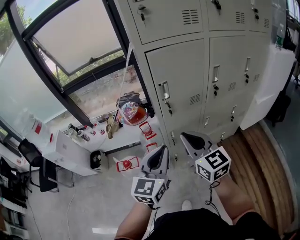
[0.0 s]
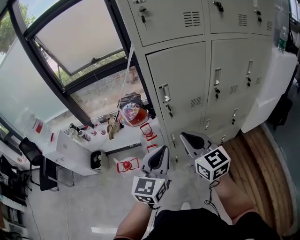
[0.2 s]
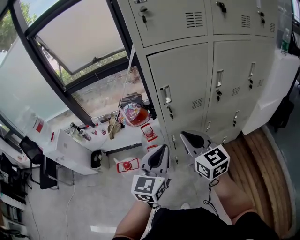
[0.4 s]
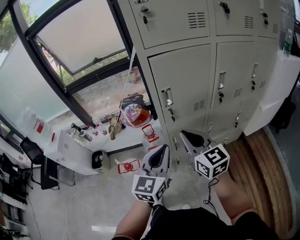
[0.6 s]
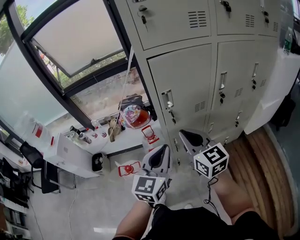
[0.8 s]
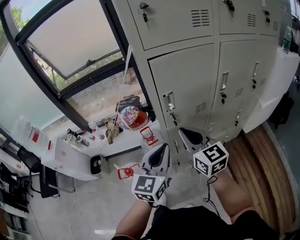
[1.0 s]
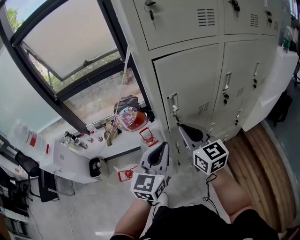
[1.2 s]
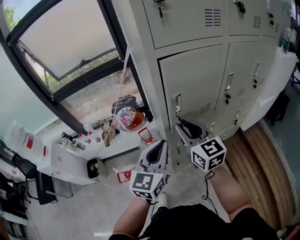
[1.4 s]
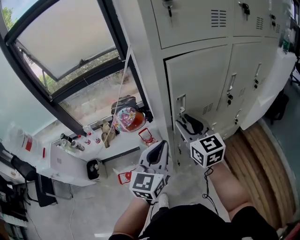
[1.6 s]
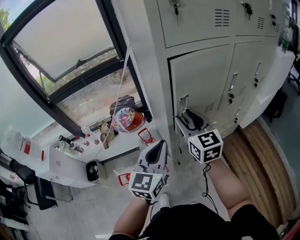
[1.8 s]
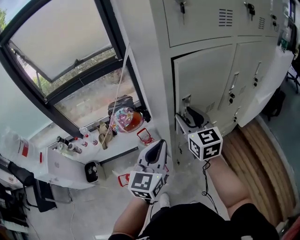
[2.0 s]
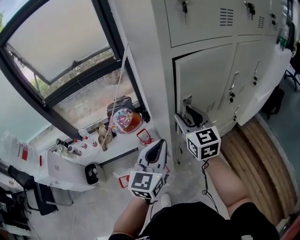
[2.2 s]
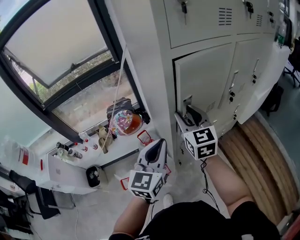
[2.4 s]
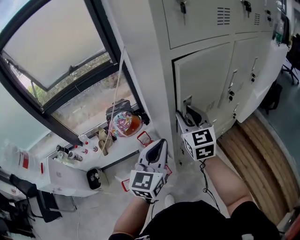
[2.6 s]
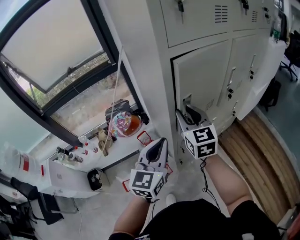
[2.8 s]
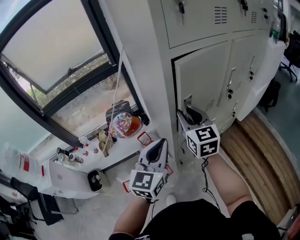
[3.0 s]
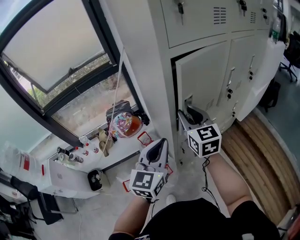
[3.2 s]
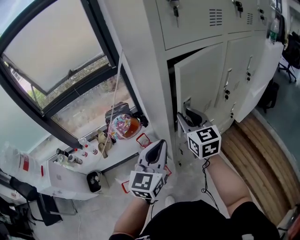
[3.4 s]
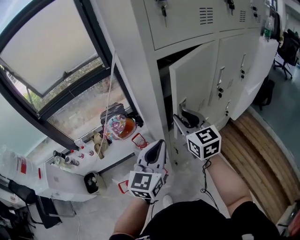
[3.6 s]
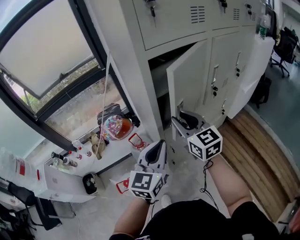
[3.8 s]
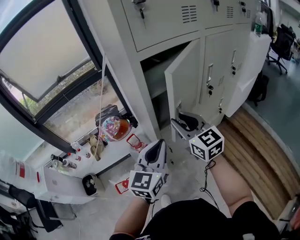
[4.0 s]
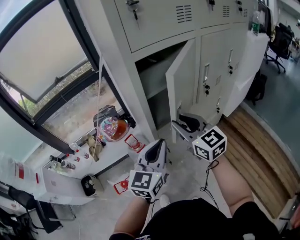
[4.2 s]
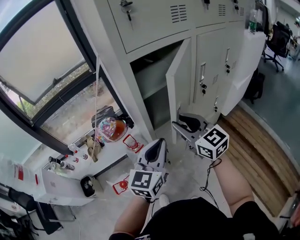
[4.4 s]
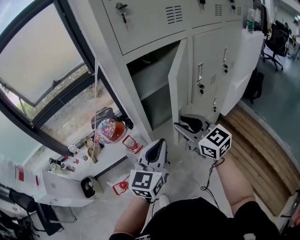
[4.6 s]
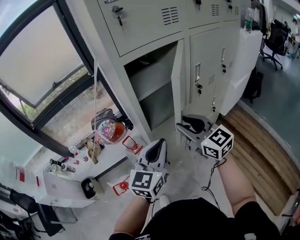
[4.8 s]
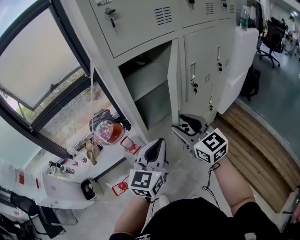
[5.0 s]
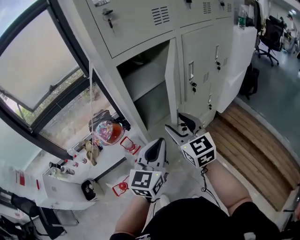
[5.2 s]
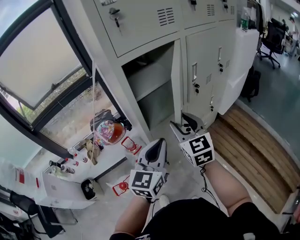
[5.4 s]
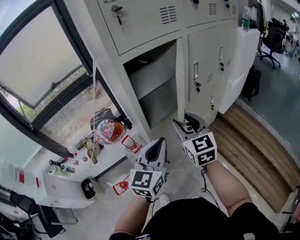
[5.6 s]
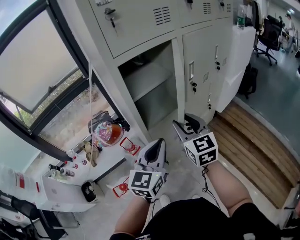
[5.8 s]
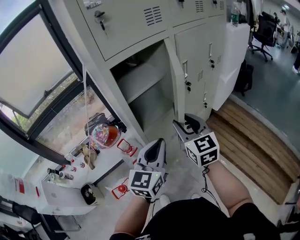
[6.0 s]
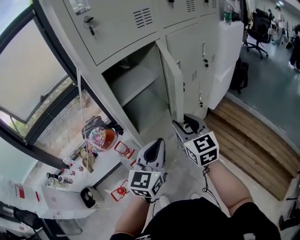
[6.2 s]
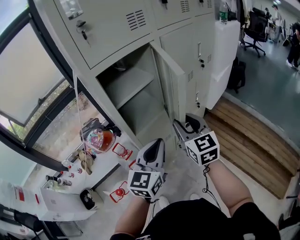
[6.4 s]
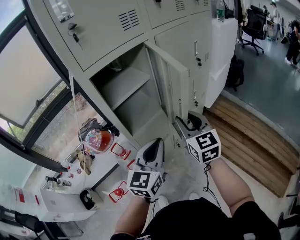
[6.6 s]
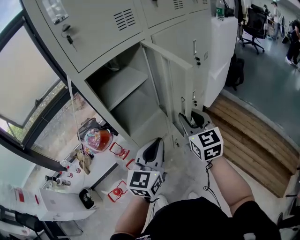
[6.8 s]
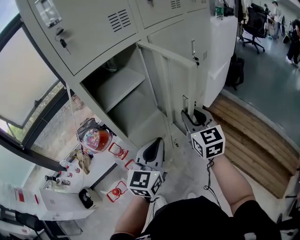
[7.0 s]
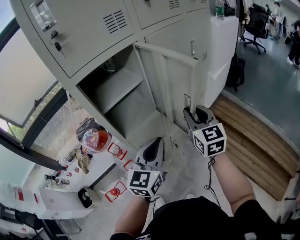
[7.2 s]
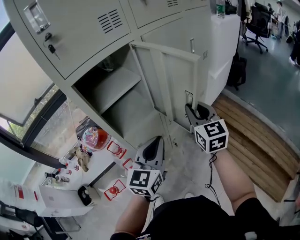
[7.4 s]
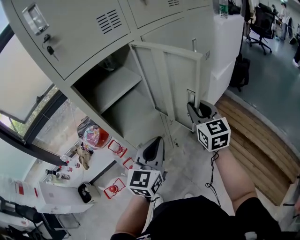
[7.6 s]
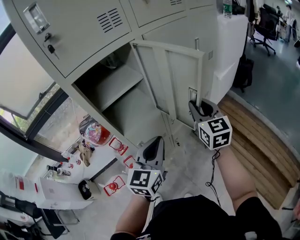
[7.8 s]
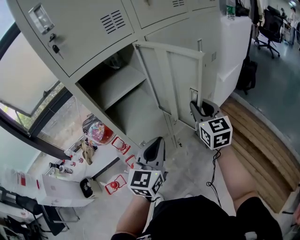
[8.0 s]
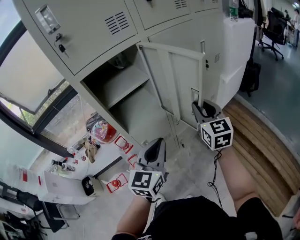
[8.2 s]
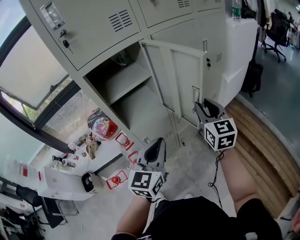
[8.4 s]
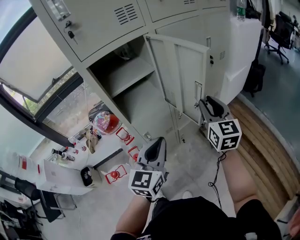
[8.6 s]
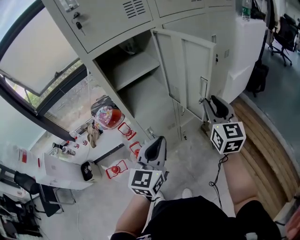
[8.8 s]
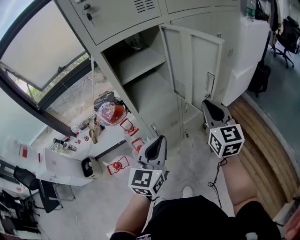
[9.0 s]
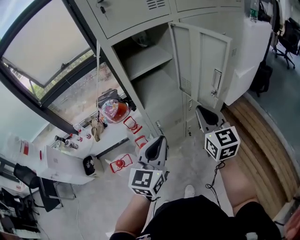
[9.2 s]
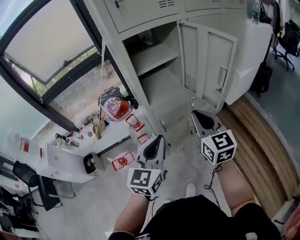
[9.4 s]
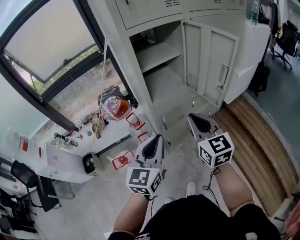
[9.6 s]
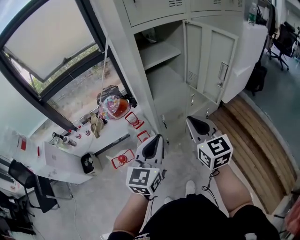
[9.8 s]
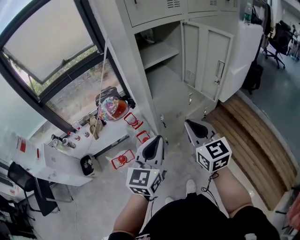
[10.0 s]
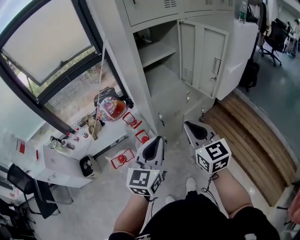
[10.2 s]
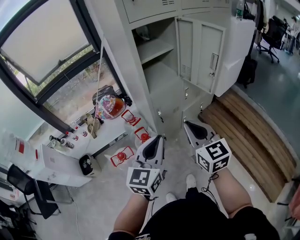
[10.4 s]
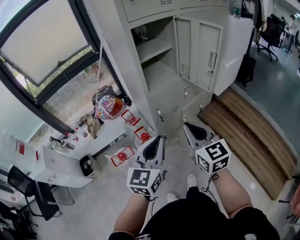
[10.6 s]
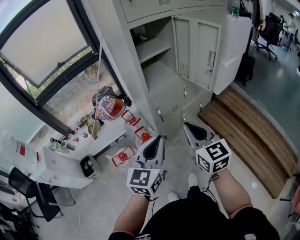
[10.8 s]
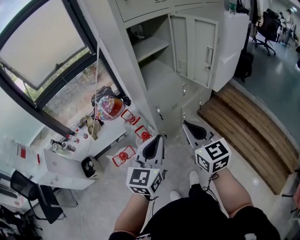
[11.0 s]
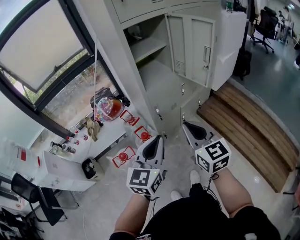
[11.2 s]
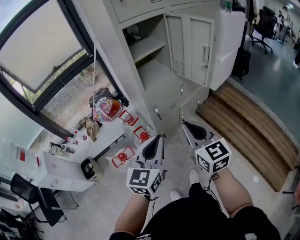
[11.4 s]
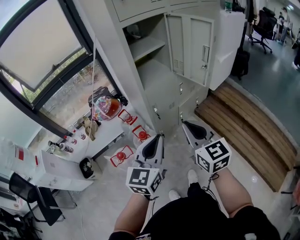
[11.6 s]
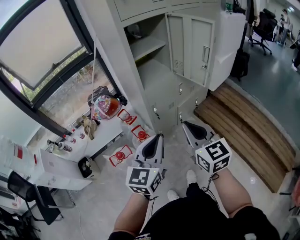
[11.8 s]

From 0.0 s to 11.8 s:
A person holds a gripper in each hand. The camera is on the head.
From 0.0 s to 1.4 s: Both grippers move forward, some 15 cm.
From 1.4 s to 3.0 s: The left gripper goes roughly 5 cm to the left. The right gripper shifts approximately 5 cm forward, and swivels approximately 20 degrees.
From 3.0 s to 4.4 s: The left gripper shifts some 10 cm to the right. Meanwhile the right gripper travels backward and to the right by approximately 10 cm.
From 4.4 s to 6.0 s: The right gripper travels to the right by roughly 5 cm, and rotates roughly 30 degrees.
From 6.0 s to 7.4 s: The left gripper moves to the right, roughly 10 cm. The right gripper travels to the right and forward by some 15 cm.
From 7.4 s to 8.8 s: The left gripper is displaced backward by about 5 cm. The right gripper changes place by about 5 cm.
From 8.8 s to 10.4 s: The left gripper moves backward and to the left, approximately 20 cm. Meanwhile the right gripper shifts approximately 30 cm to the left and backward, and closes its fingers.
From 10.4 s to 11.8 s: The grippers stay close to where they were, moving slightly.

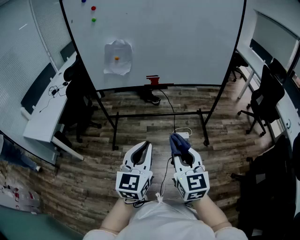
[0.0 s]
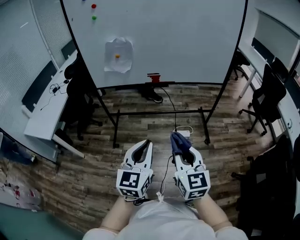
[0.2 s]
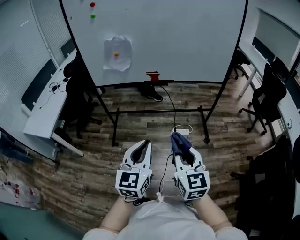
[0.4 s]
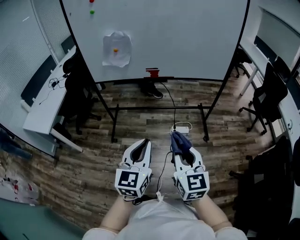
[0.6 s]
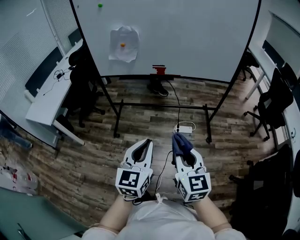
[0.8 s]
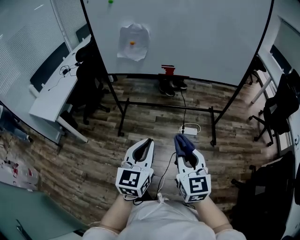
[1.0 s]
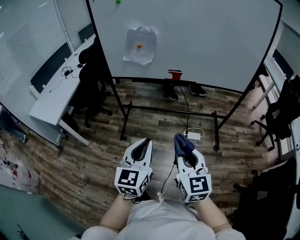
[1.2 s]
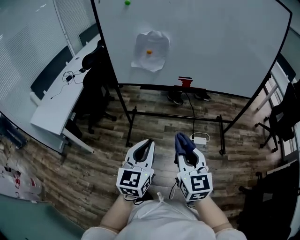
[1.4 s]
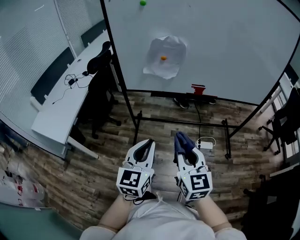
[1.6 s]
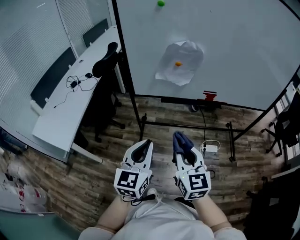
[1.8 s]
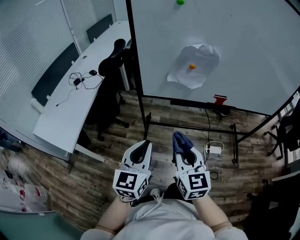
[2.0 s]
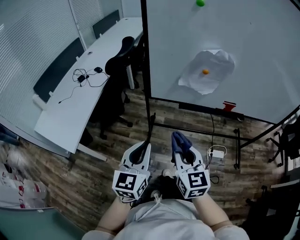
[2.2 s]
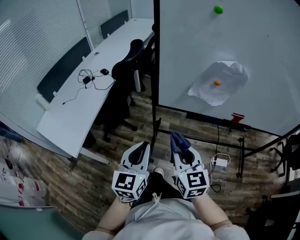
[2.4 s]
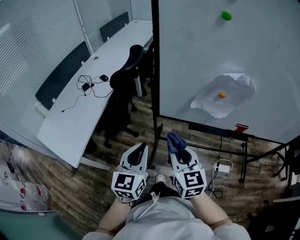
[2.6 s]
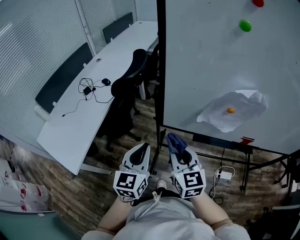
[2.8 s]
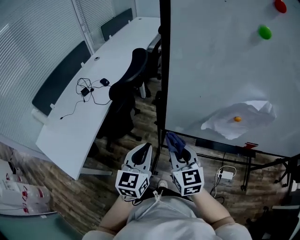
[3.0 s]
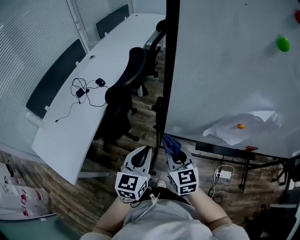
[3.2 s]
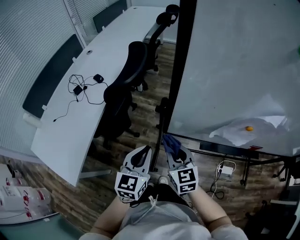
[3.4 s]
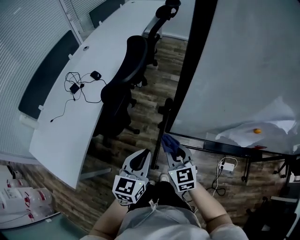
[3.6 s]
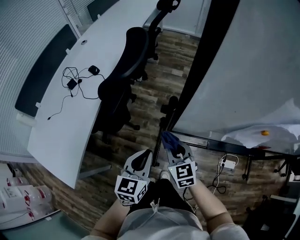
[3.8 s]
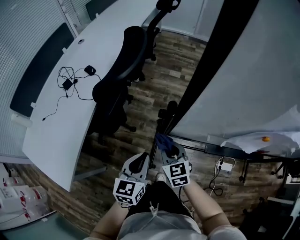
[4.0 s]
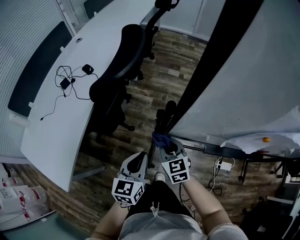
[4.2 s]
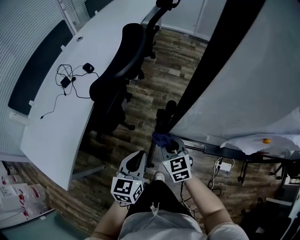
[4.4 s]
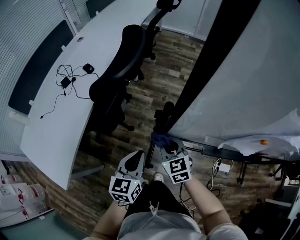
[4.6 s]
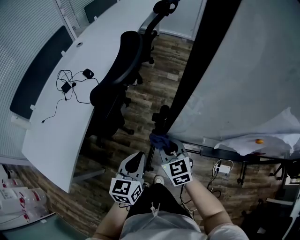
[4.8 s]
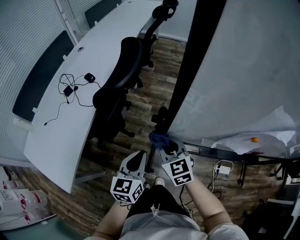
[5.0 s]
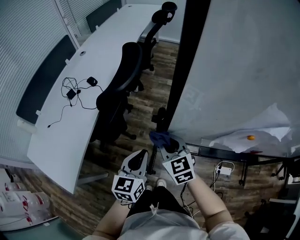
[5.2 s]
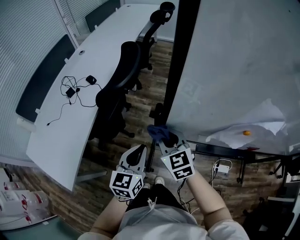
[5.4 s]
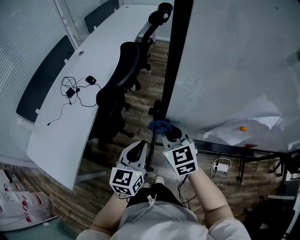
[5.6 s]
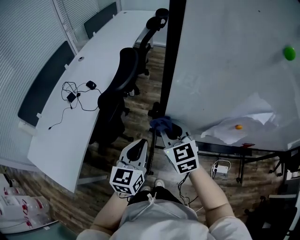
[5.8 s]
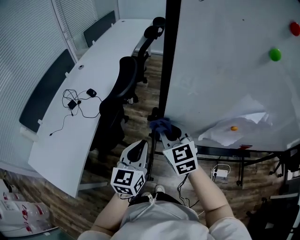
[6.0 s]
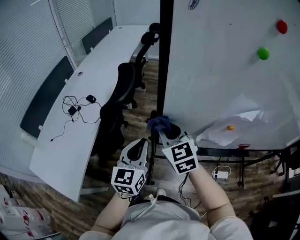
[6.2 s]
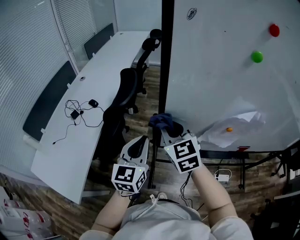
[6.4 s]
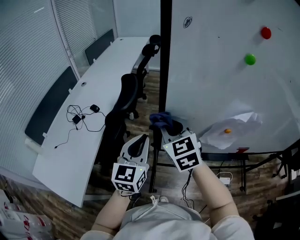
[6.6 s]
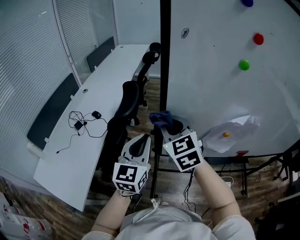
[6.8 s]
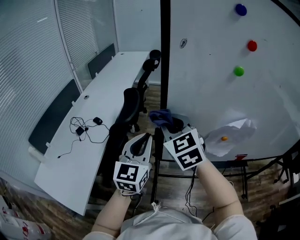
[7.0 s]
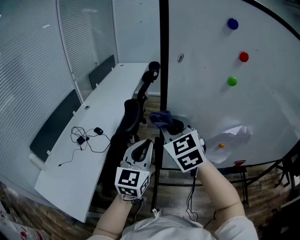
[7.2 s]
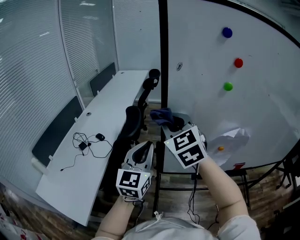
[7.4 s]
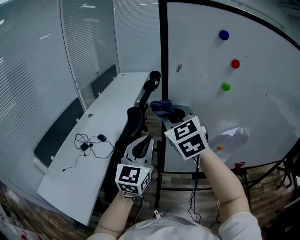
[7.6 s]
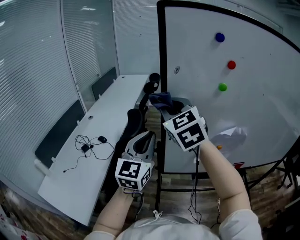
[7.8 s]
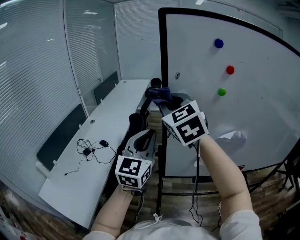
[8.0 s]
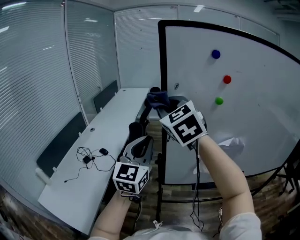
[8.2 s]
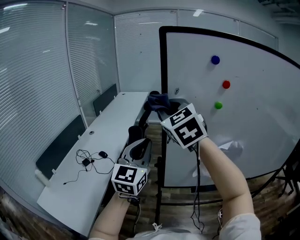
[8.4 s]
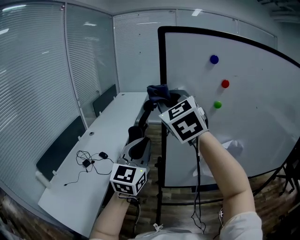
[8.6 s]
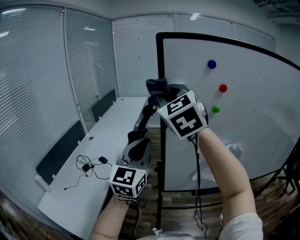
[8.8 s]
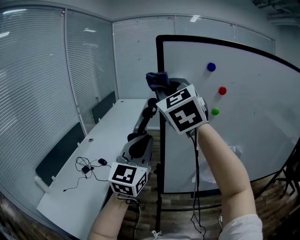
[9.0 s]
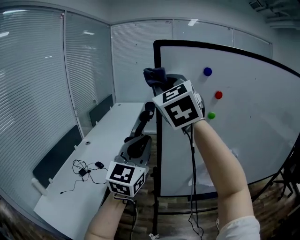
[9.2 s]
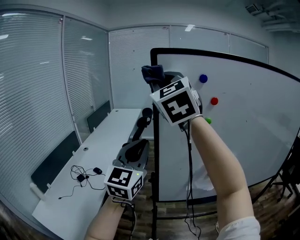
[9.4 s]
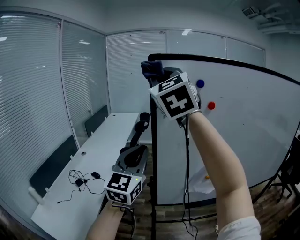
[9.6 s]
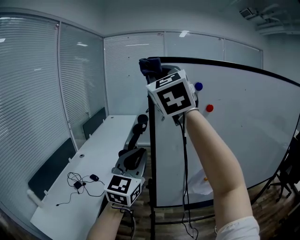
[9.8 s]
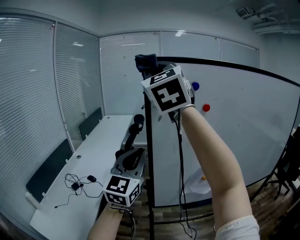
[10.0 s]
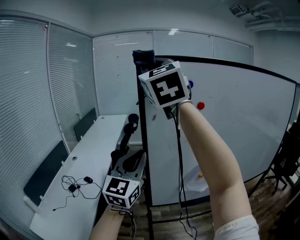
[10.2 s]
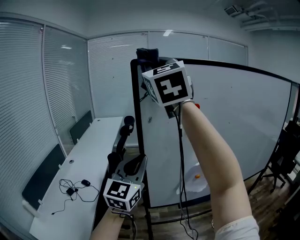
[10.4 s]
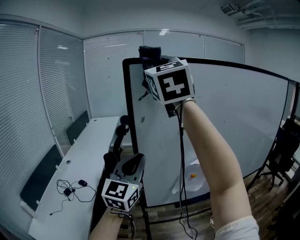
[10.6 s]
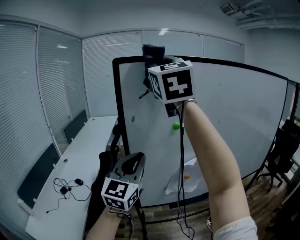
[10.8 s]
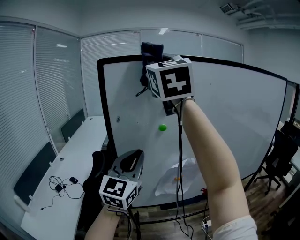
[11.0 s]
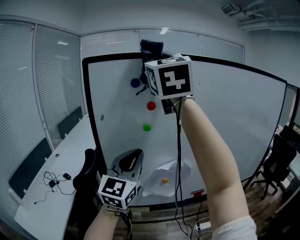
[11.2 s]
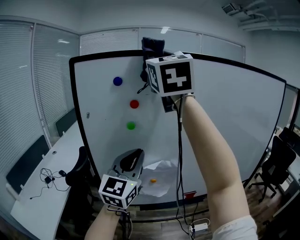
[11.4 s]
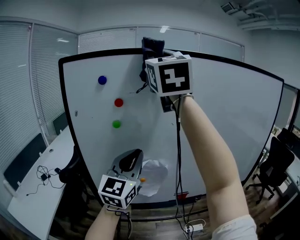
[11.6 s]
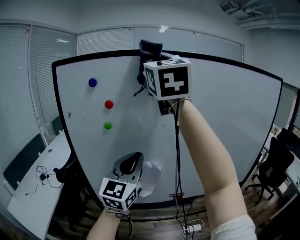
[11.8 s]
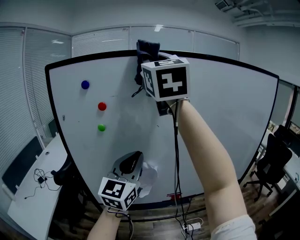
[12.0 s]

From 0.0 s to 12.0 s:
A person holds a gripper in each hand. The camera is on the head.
From 0.0 s to 1.6 s: The two grippers go about 25 cm to the left and forward.
From 1.6 s to 3.0 s: Both grippers are carried forward and to the left, roughly 40 cm.
From 3.0 s to 4.4 s: The right gripper goes roughly 20 cm downward and forward. The left gripper travels downward by about 15 cm.
From 4.4 s to 6.0 s: The grippers both shift upward by about 20 cm.
From 6.0 s to 7.6 s: The two grippers go about 25 cm upward. The left gripper swivels about 20 degrees.
From 7.6 s to 9.0 s: The left gripper goes approximately 10 cm upward, while the right gripper shifts roughly 20 cm upward.
From 9.0 s to 10.4 s: The right gripper is displaced upward and to the right by some 15 cm; the left gripper shifts roughly 5 cm to the right.
From 10.4 s to 12.0 s: Both grippers travel together to the right, about 30 cm.
